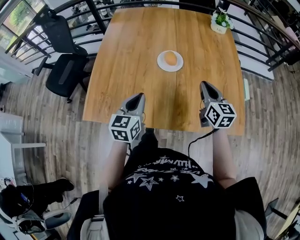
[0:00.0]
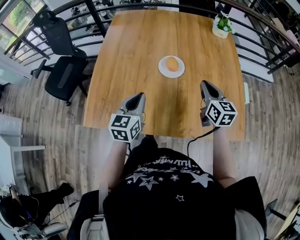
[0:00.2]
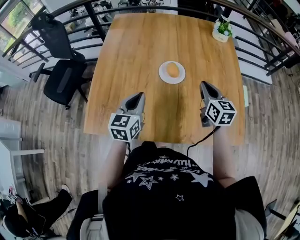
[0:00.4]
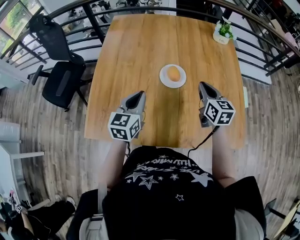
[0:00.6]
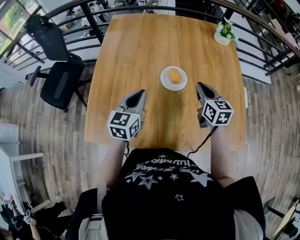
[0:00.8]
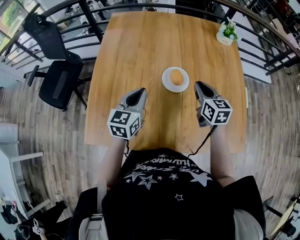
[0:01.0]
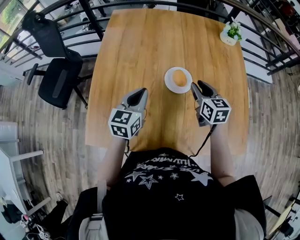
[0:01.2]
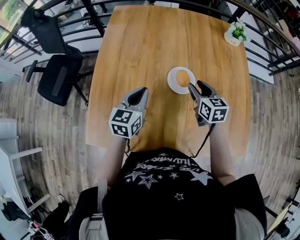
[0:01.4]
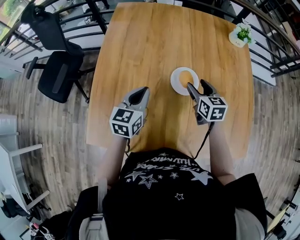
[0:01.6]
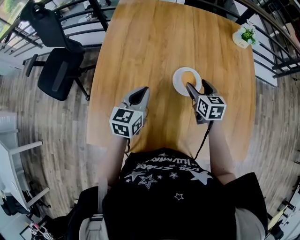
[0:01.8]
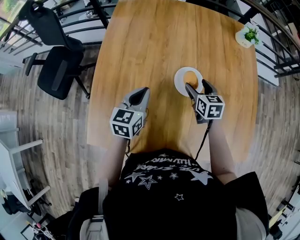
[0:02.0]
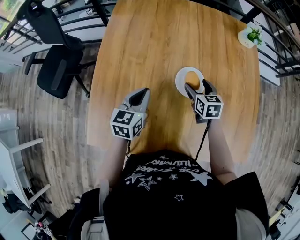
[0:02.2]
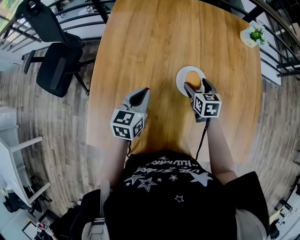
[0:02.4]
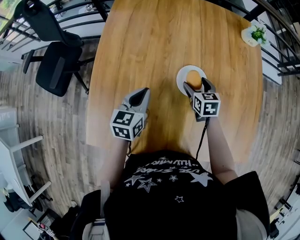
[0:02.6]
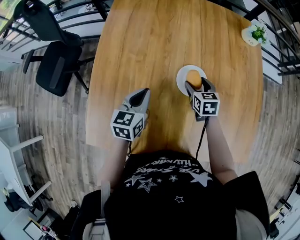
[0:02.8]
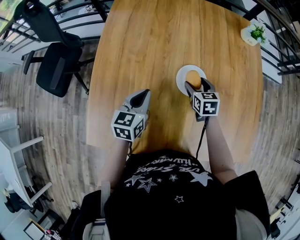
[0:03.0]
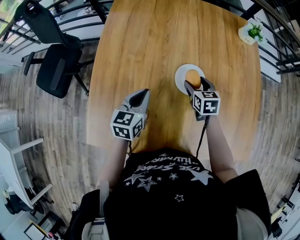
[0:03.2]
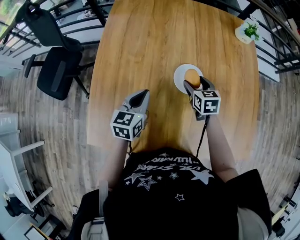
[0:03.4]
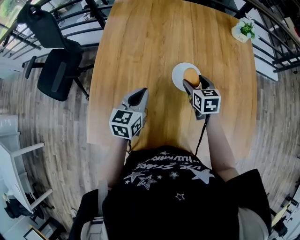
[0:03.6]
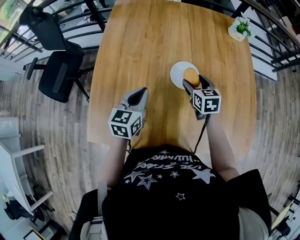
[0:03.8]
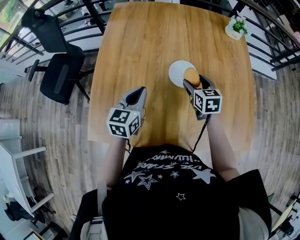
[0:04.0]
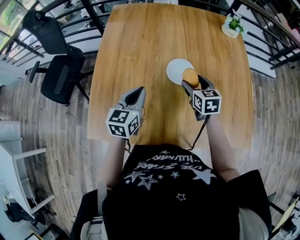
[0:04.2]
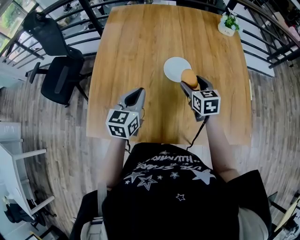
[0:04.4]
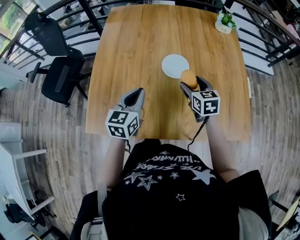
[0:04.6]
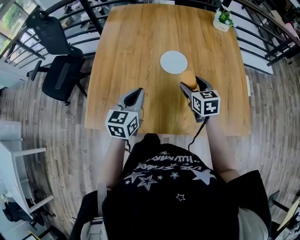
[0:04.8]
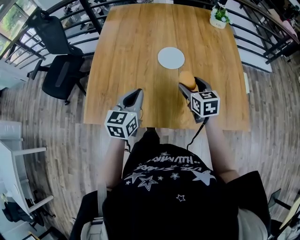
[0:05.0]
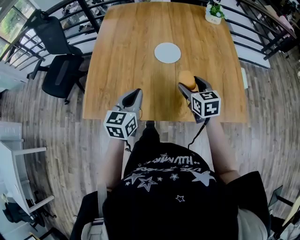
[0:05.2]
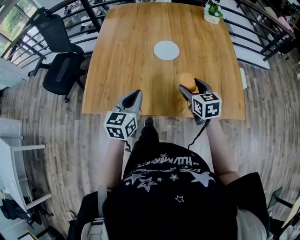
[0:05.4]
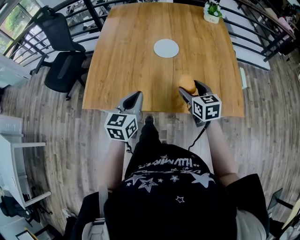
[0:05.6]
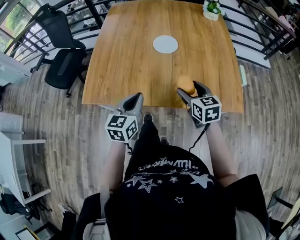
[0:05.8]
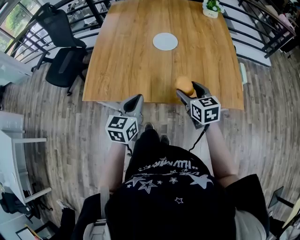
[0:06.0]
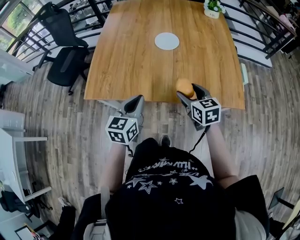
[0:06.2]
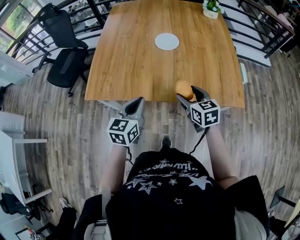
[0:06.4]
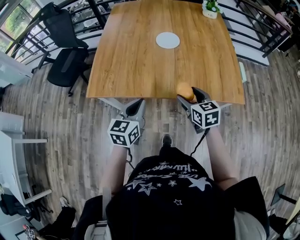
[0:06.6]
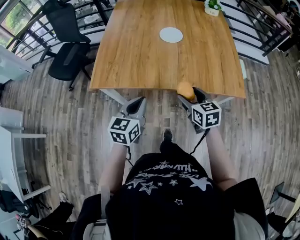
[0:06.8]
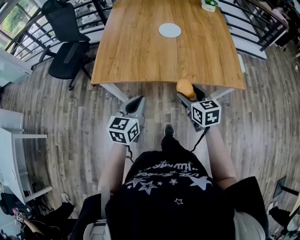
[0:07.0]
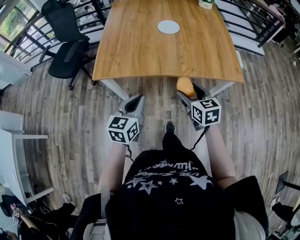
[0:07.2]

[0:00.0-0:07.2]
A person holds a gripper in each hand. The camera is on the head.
0:00.0 to 0:01.4: The right gripper shifts some 20 cm forward, to the left and downward, and opens its fingers, while the left gripper is displaced forward by roughly 15 cm.
0:01.4 to 0:02.8: The right gripper travels downward by some 10 cm, and opens its fingers. The left gripper moves downward, some 5 cm.
0:02.8 to 0:04.4: The right gripper travels upward and backward by approximately 15 cm; the left gripper is displaced backward and upward by some 10 cm.
0:04.4 to 0:05.8: The two grippers go some 20 cm backward.
0:05.8 to 0:07.2: The two grippers go approximately 20 cm backward.

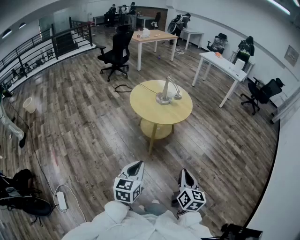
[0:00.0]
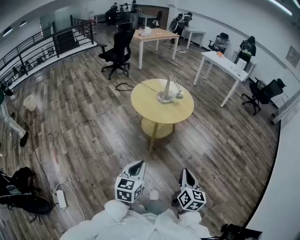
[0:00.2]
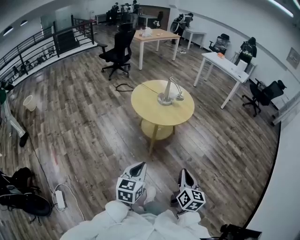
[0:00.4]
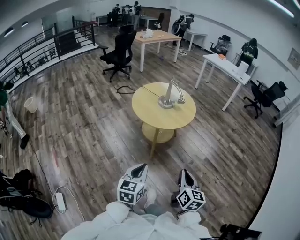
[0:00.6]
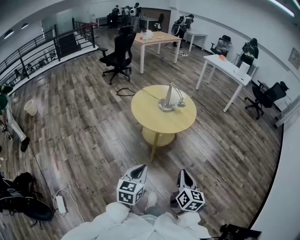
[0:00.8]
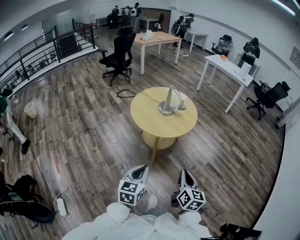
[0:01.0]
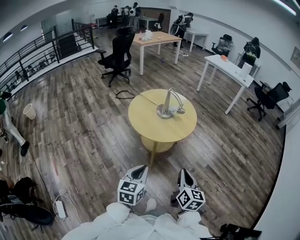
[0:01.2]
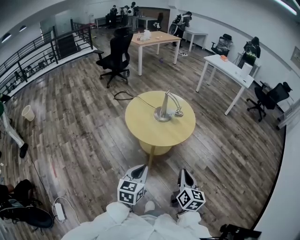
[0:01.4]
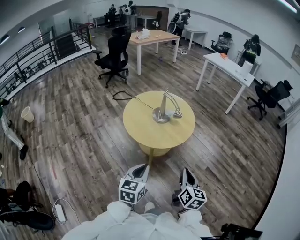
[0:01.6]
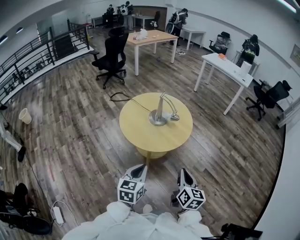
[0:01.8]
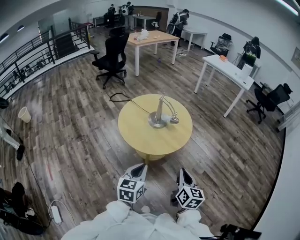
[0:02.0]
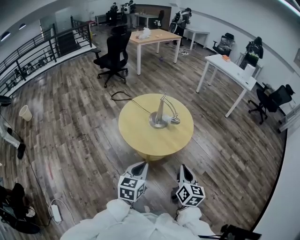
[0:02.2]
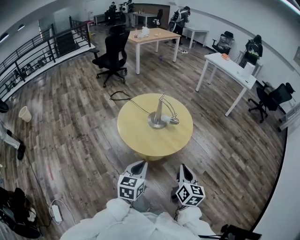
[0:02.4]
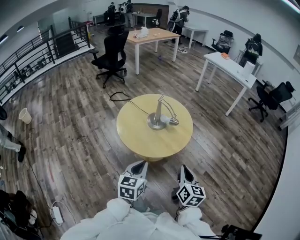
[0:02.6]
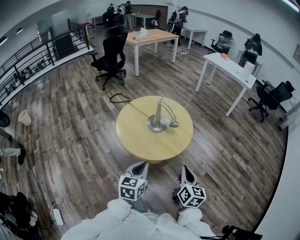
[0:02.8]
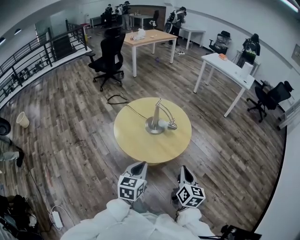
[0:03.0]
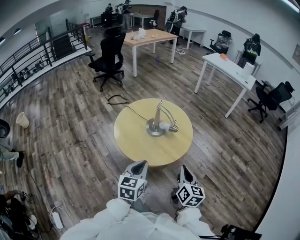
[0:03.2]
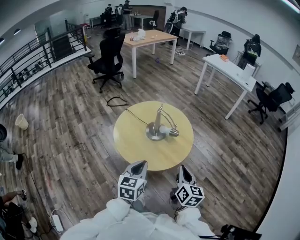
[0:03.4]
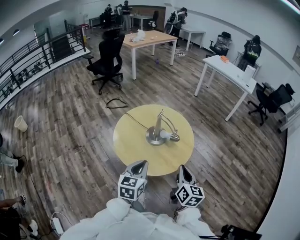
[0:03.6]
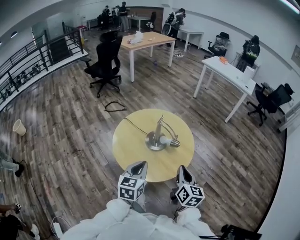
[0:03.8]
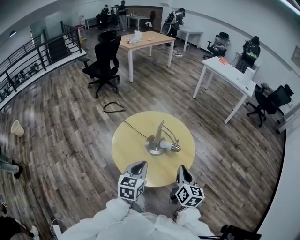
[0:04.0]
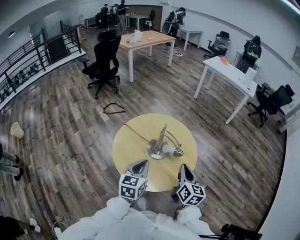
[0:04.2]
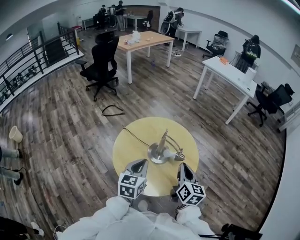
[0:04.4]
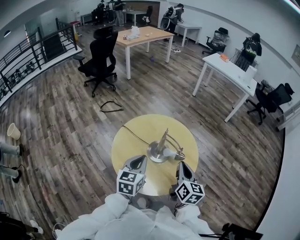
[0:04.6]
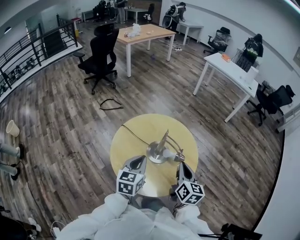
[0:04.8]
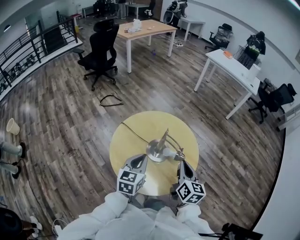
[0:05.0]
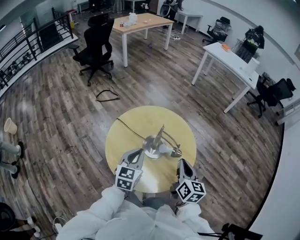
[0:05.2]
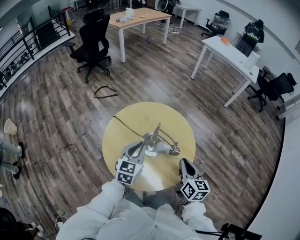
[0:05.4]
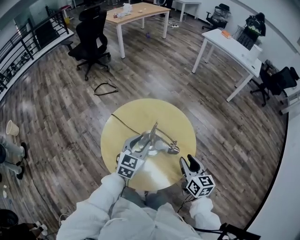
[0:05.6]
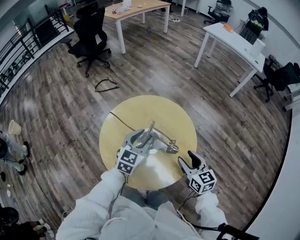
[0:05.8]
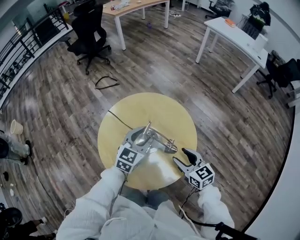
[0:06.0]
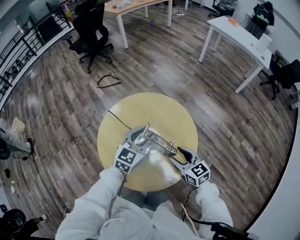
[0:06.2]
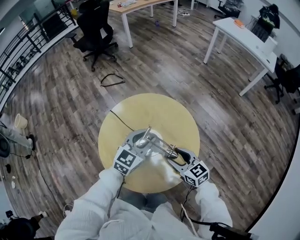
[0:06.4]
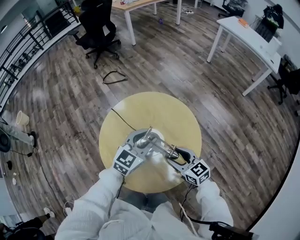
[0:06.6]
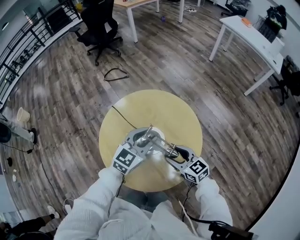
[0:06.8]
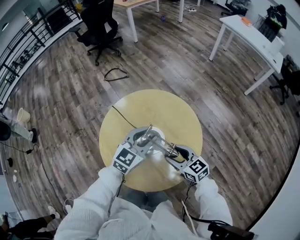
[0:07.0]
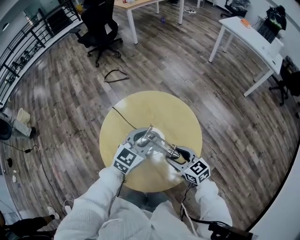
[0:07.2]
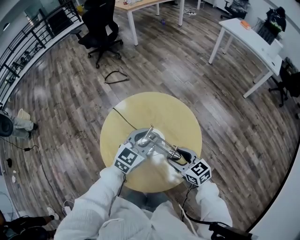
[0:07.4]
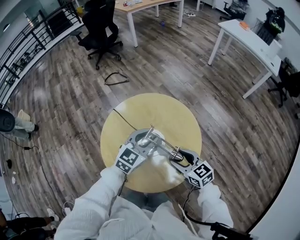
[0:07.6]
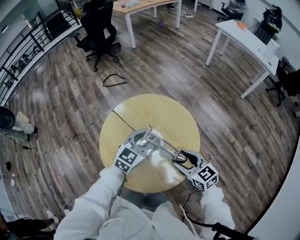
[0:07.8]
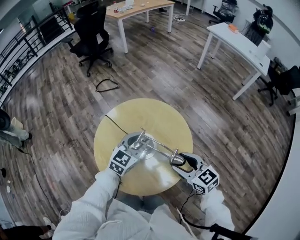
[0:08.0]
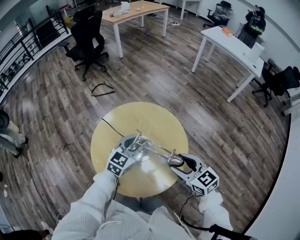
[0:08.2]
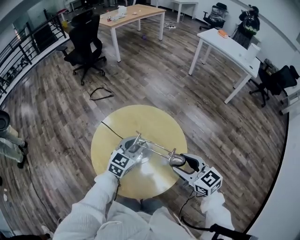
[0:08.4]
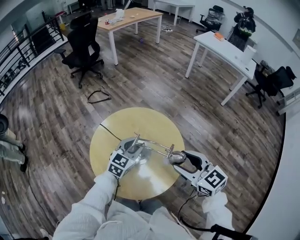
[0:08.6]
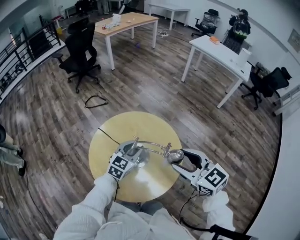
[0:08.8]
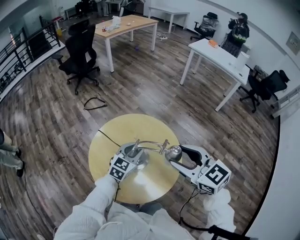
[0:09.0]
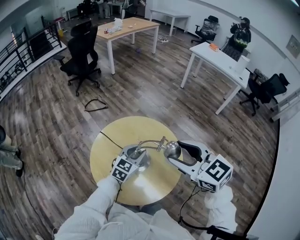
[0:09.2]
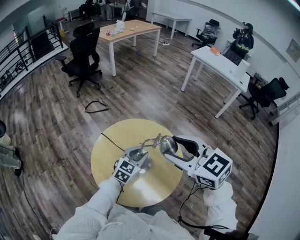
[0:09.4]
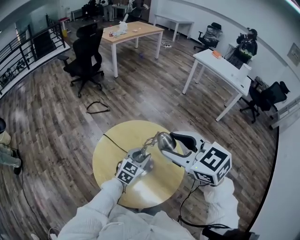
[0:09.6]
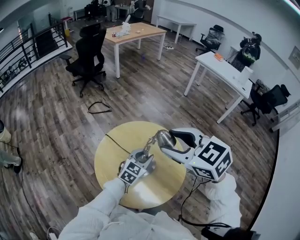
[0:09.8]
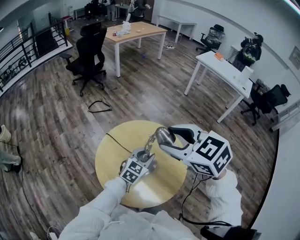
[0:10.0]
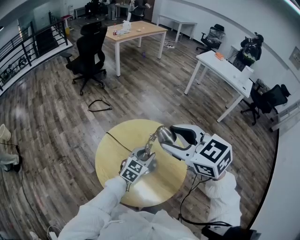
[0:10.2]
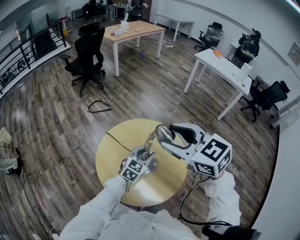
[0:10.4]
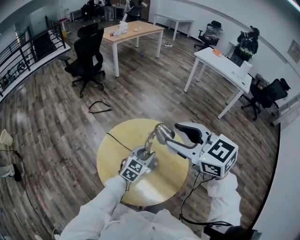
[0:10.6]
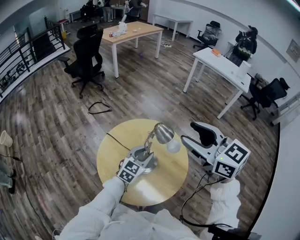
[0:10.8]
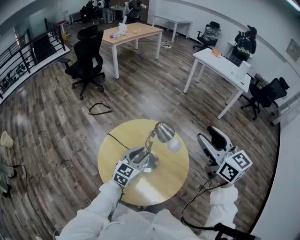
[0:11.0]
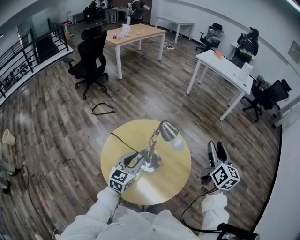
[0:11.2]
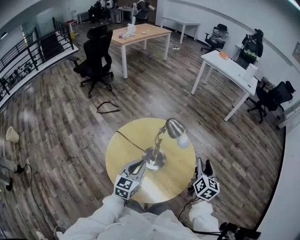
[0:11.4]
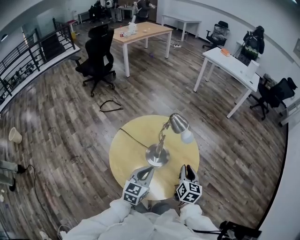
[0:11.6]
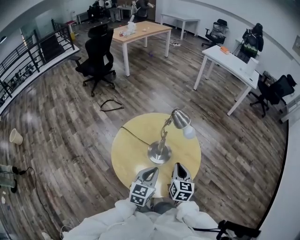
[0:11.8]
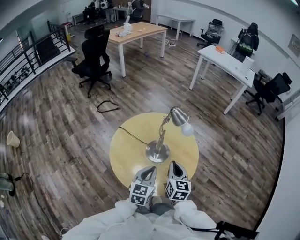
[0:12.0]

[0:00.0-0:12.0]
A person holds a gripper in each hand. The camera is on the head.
0:00.0 to 0:01.6: Both grippers move forward, about 25 cm.
0:01.6 to 0:03.0: The grippers both shift forward by roughly 15 cm.
0:03.0 to 0:04.4: Both grippers move forward, approximately 25 cm.
0:04.4 to 0:06.0: The left gripper moves forward and to the right, some 20 cm, and opens its fingers, while the right gripper shifts approximately 15 cm downward and forward, rotates roughly 40 degrees, and opens.
0:07.6 to 0:09.0: The right gripper travels upward by approximately 25 cm.
0:09.0 to 0:10.4: The right gripper shifts approximately 15 cm to the left, upward and forward.
0:10.4 to 0:12.0: The right gripper moves downward, some 25 cm, rotates approximately 60 degrees, and closes up. The left gripper ends up roughly 15 cm from where it was, and closes its fingers.

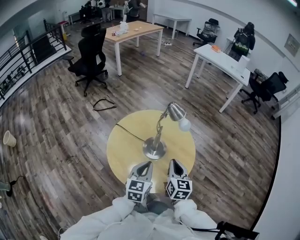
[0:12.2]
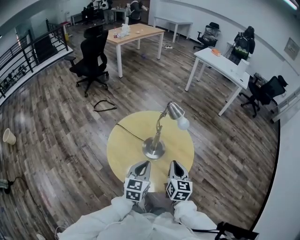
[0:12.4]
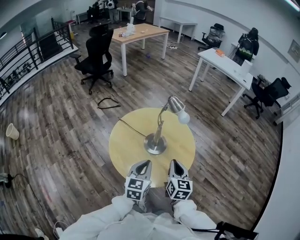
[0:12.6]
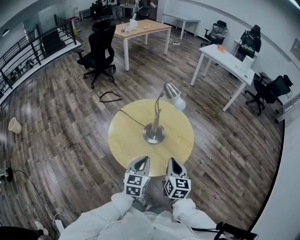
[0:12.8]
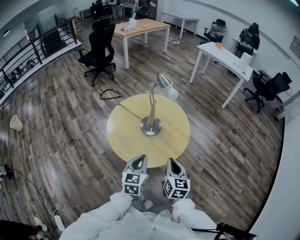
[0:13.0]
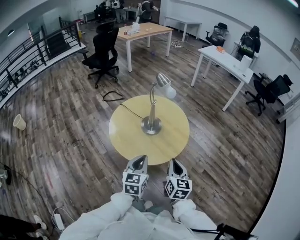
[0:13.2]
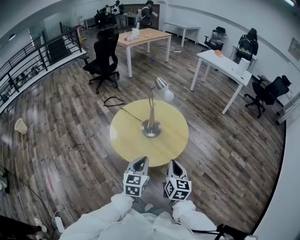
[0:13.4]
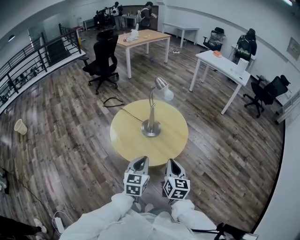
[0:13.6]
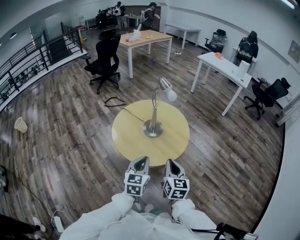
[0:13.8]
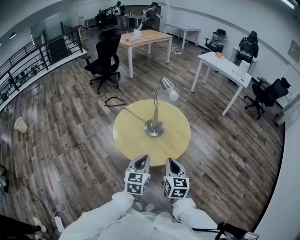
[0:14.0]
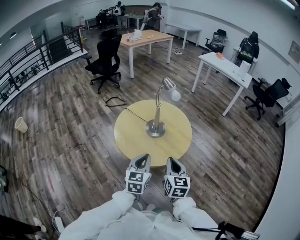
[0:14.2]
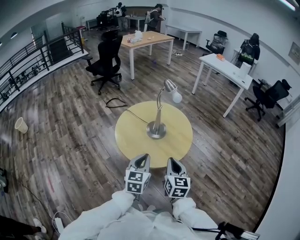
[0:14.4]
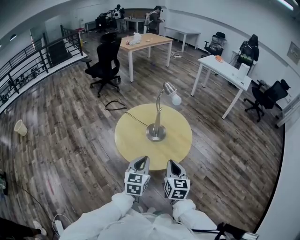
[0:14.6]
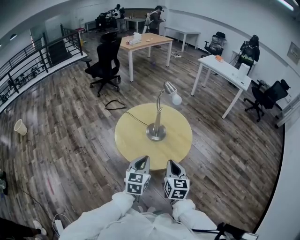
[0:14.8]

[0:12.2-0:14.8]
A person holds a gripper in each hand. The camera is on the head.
0:12.2 to 0:13.4: The right gripper heads backward and to the right, covering some 20 cm; the left gripper is displaced backward by about 20 cm.
0:13.4 to 0:14.8: The right gripper moves to the left, approximately 5 cm.

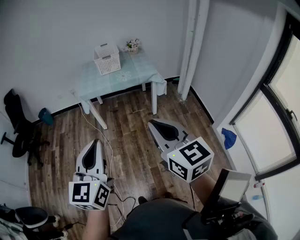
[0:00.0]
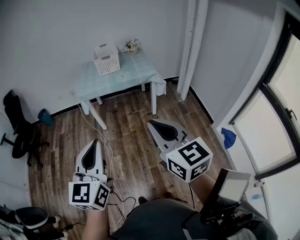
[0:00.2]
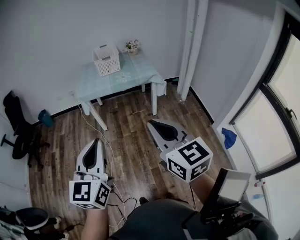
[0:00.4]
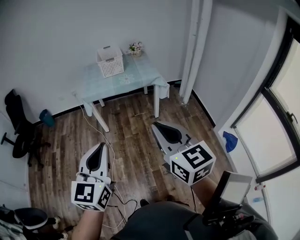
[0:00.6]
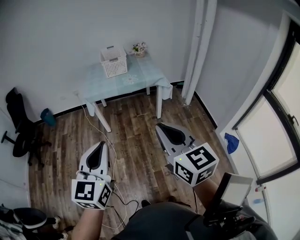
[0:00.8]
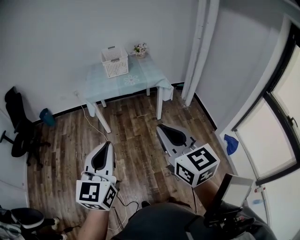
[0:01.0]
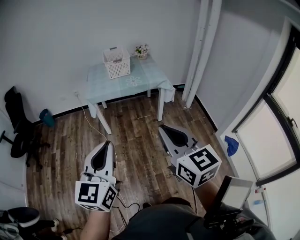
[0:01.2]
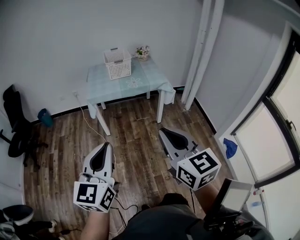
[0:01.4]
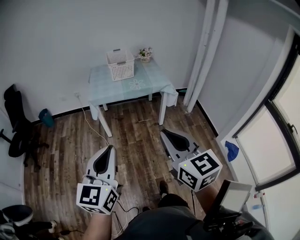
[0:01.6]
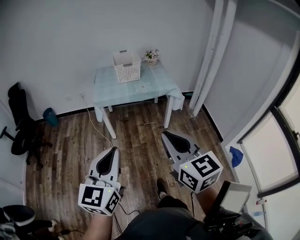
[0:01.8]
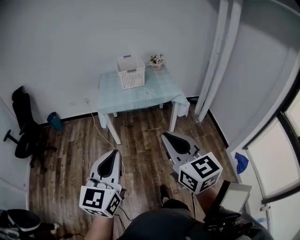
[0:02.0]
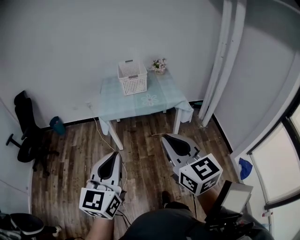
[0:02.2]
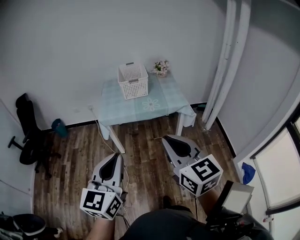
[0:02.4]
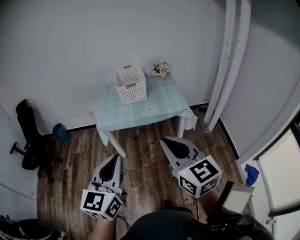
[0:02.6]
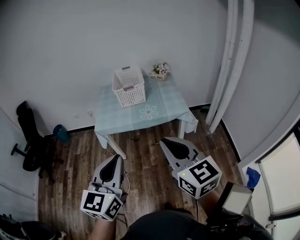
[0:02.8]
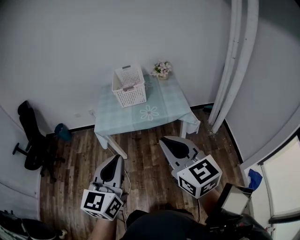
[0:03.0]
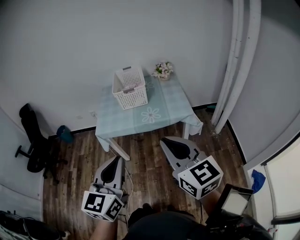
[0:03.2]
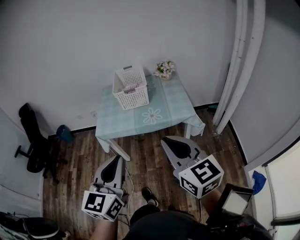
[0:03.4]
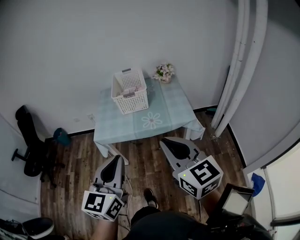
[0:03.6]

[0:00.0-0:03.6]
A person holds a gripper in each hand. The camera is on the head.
0:00.0 to 0:01.8: The grippers both shift to the left and forward by about 10 cm.
0:01.8 to 0:03.6: The two grippers go about 35 cm forward.
